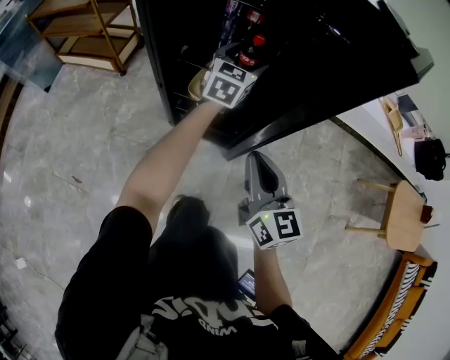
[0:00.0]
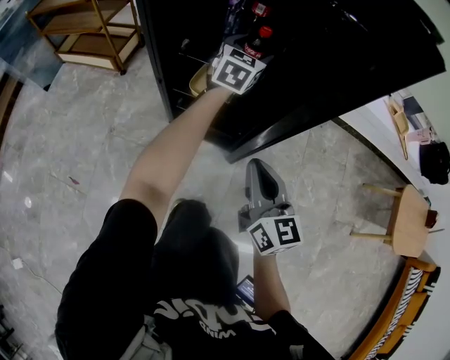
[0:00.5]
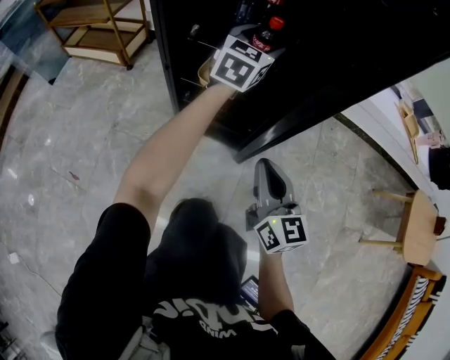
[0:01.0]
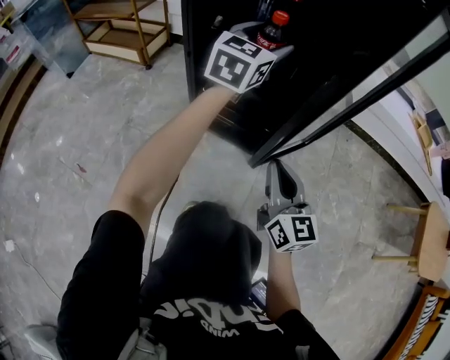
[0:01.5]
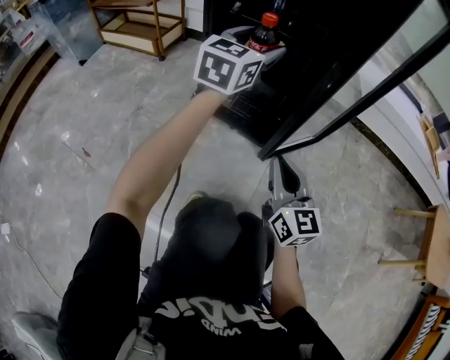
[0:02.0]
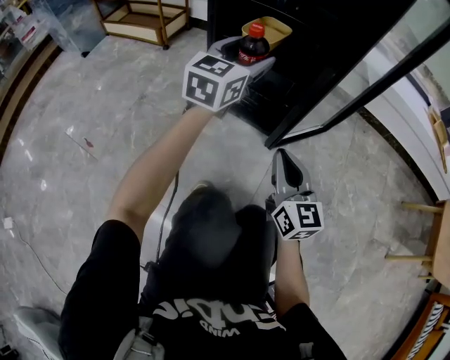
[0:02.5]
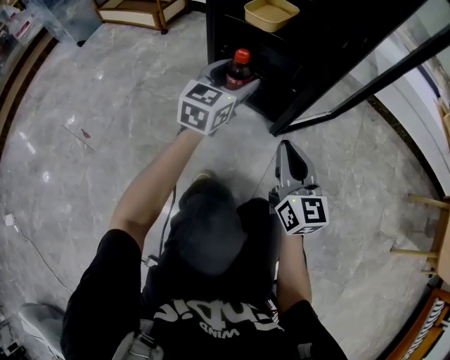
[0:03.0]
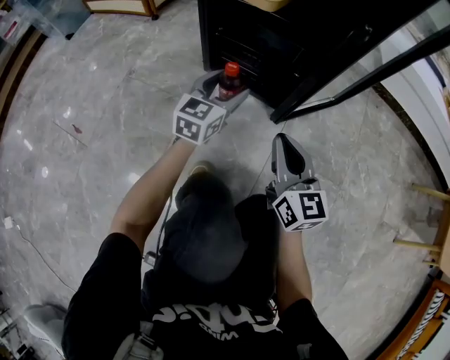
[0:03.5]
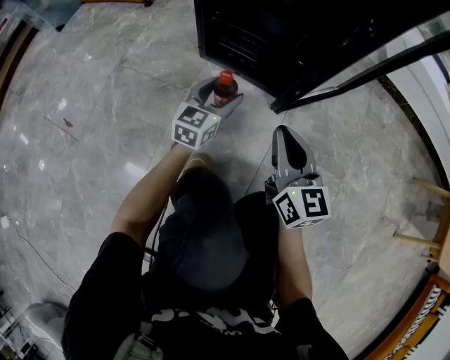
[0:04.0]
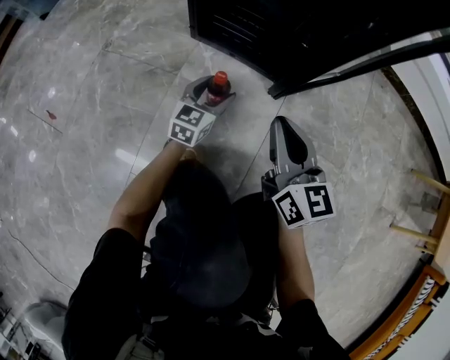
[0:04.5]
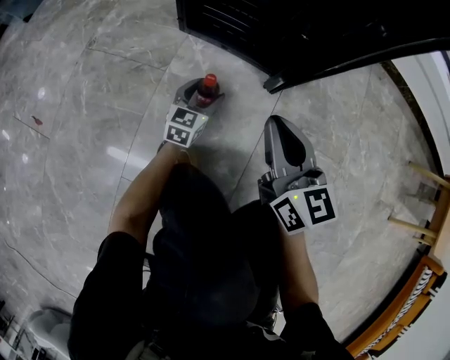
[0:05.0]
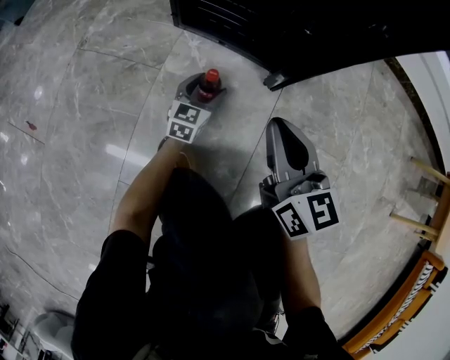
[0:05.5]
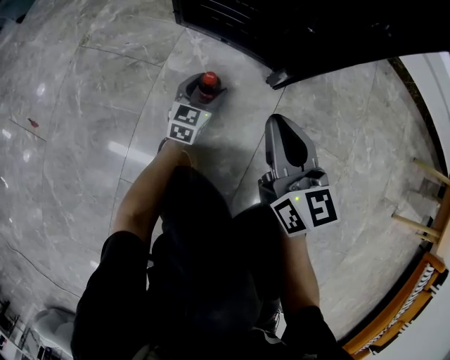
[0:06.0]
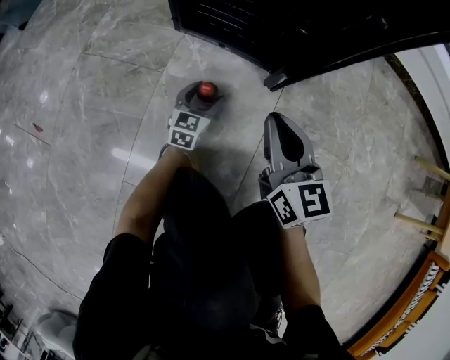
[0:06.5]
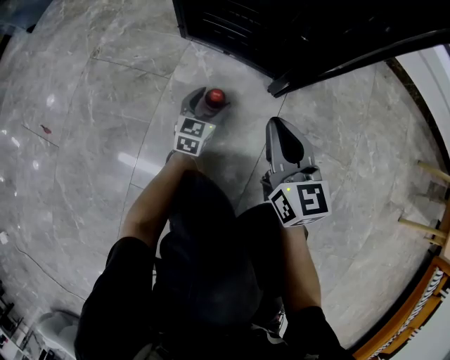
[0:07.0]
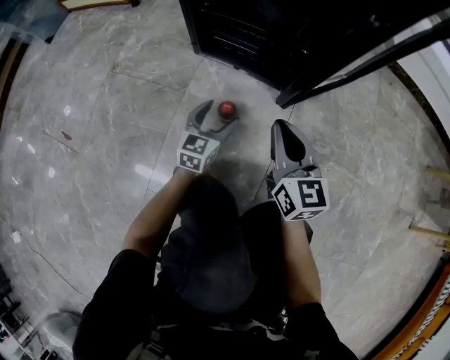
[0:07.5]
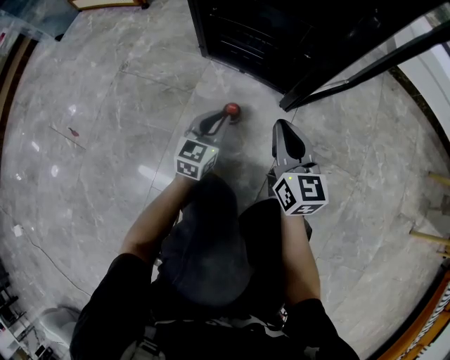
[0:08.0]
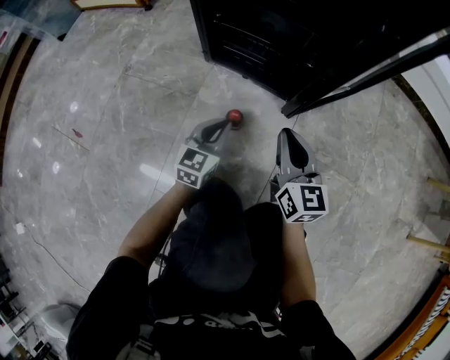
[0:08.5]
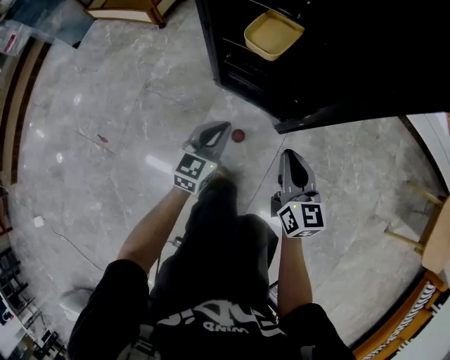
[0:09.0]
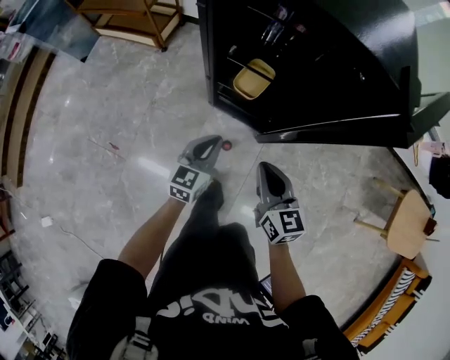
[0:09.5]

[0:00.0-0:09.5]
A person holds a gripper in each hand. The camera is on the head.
0:00.0 to 0:02.0: The right gripper goes roughly 25 cm downward and backward. The left gripper travels backward by about 20 cm.
0:02.0 to 0:04.0: The left gripper is displaced downward by some 40 cm. Meanwhile the right gripper is displaced downward by approximately 15 cm.
0:04.0 to 0:05.5: The left gripper shifts approximately 20 cm downward; the right gripper is displaced downward by roughly 5 cm.
0:05.5 to 0:07.5: The left gripper moves upward and backward, some 10 cm.
0:07.5 to 0:09.5: The two grippers go some 60 cm upward. The left gripper closes its fingers.

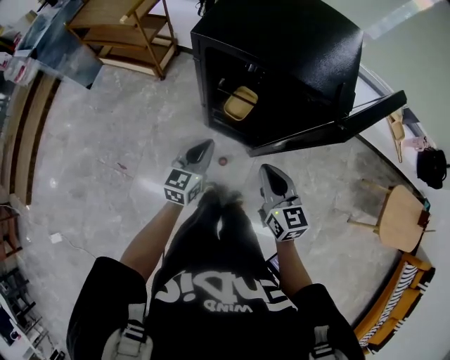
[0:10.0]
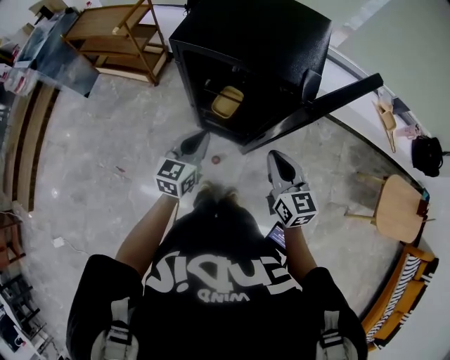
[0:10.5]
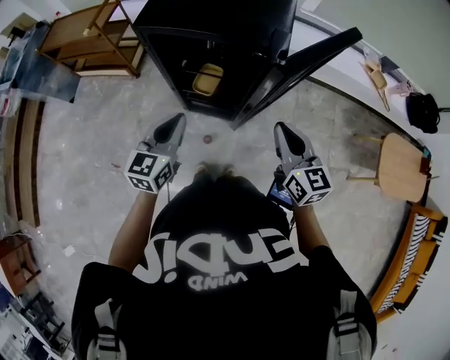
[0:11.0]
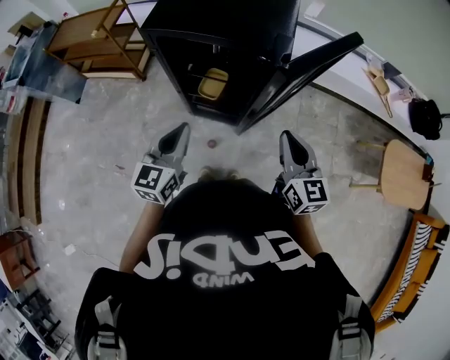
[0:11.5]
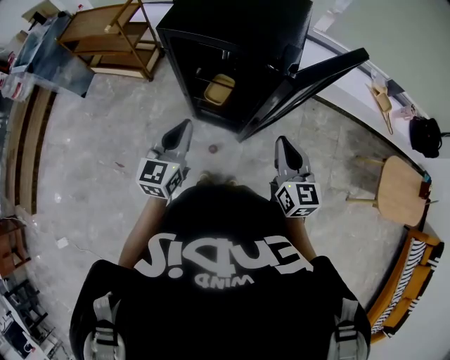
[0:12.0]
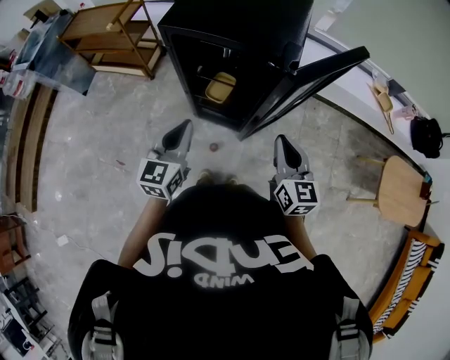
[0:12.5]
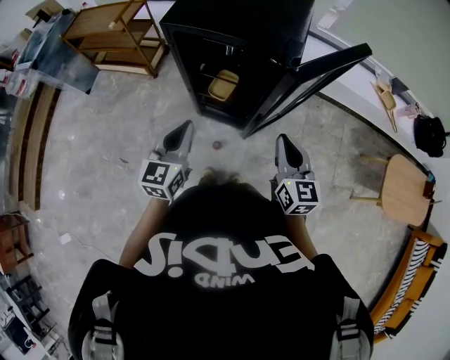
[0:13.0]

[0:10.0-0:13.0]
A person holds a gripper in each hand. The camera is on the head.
0:10.0 to 0:11.5: The left gripper shifts approximately 15 cm upward, backward and to the right; the right gripper shifts some 20 cm to the right and upward.
0:11.5 to 0:13.0: There are only small adjustments of the grippers.

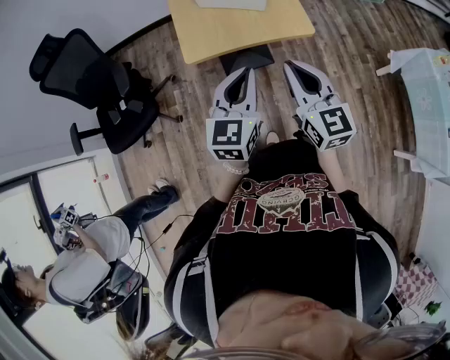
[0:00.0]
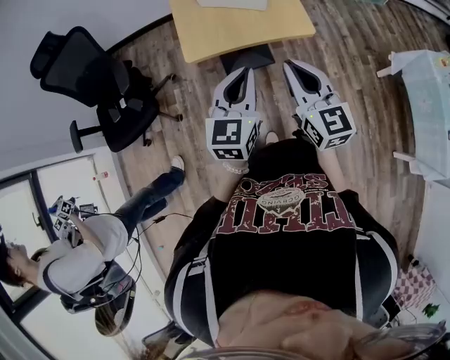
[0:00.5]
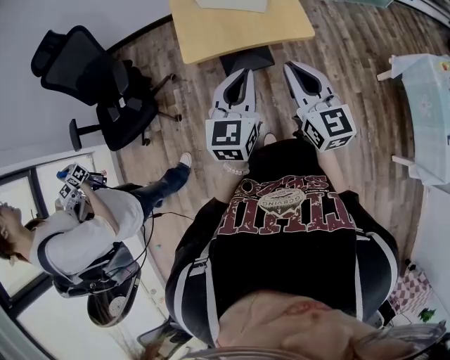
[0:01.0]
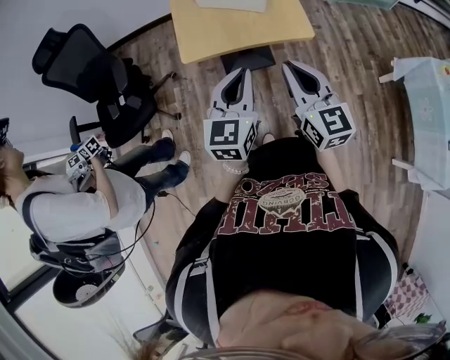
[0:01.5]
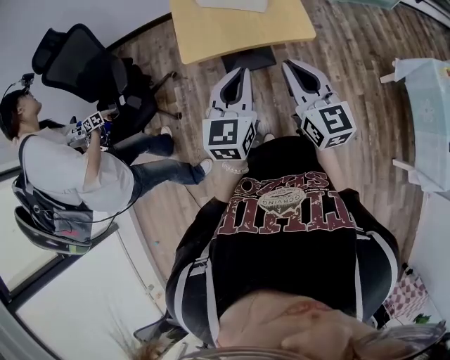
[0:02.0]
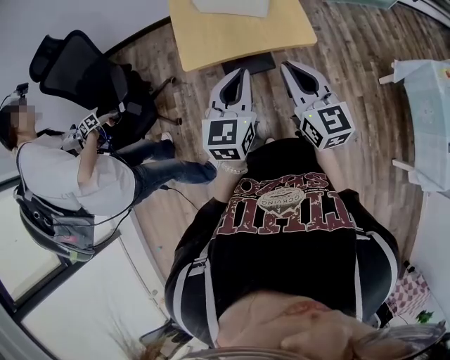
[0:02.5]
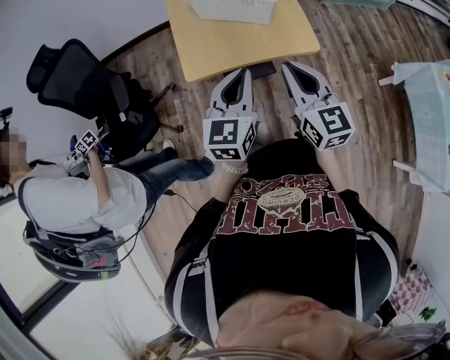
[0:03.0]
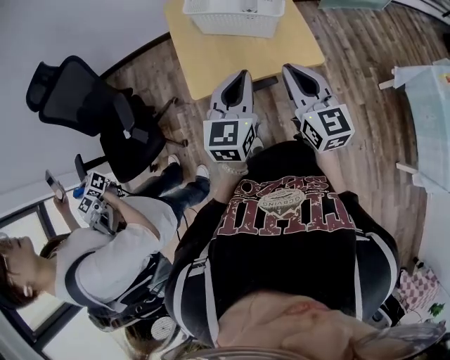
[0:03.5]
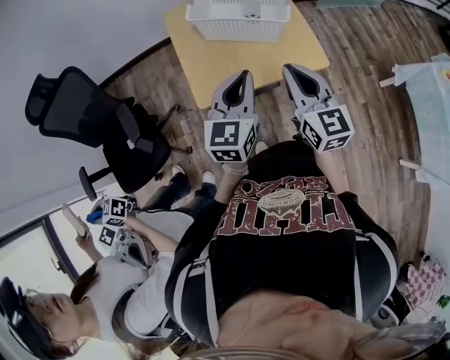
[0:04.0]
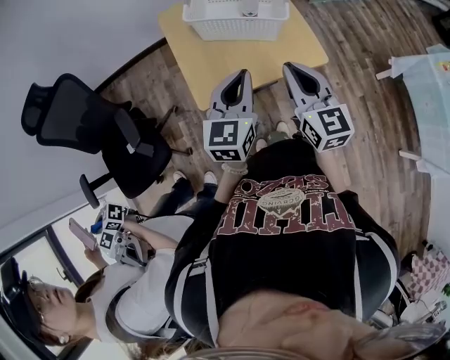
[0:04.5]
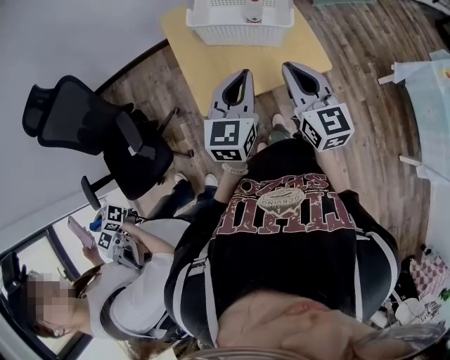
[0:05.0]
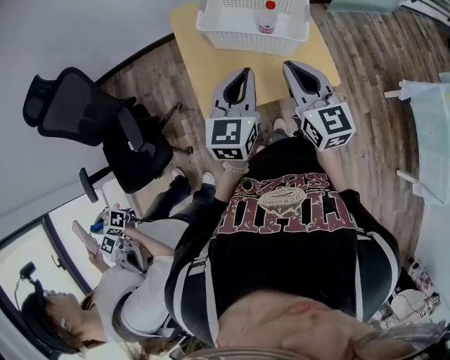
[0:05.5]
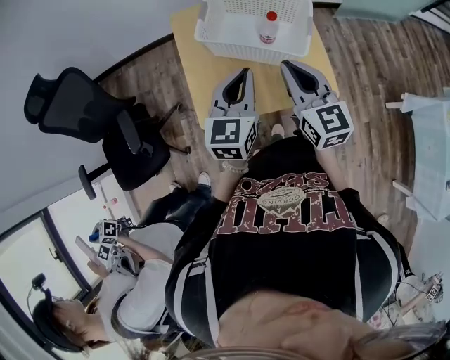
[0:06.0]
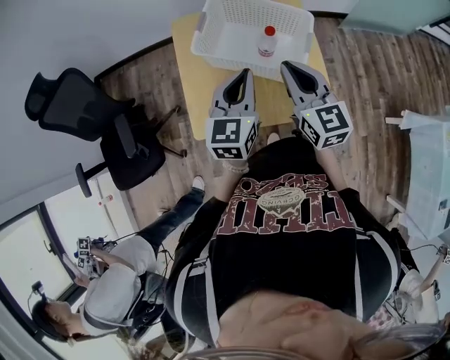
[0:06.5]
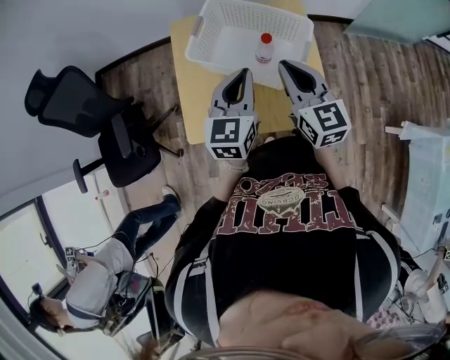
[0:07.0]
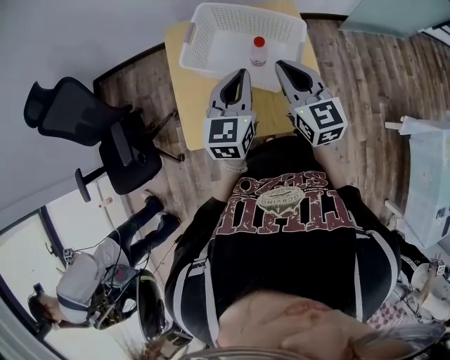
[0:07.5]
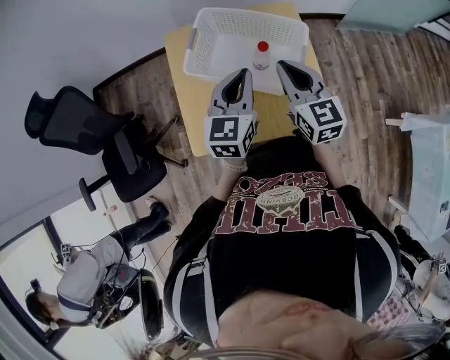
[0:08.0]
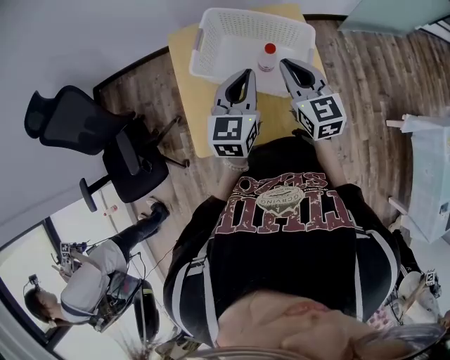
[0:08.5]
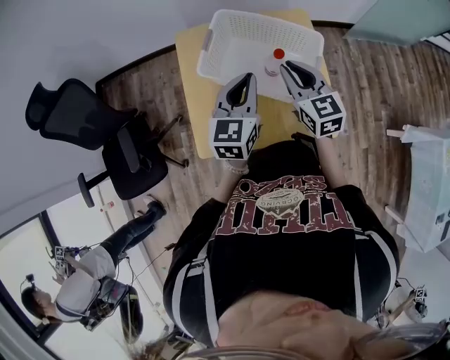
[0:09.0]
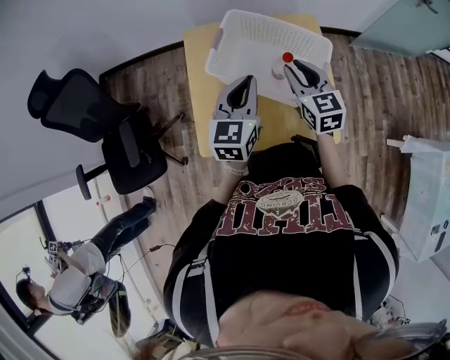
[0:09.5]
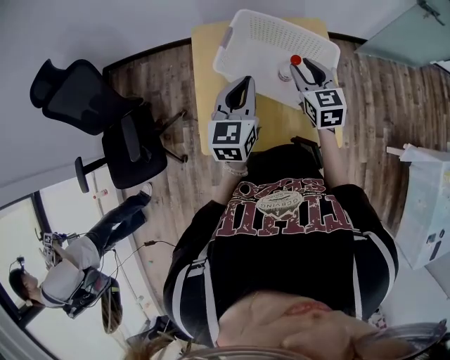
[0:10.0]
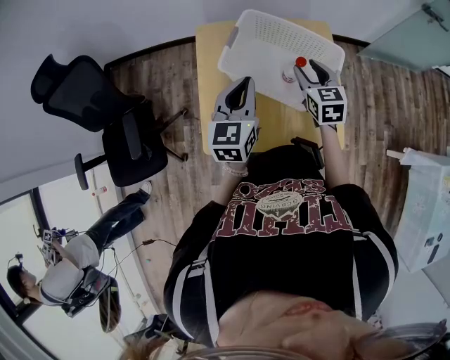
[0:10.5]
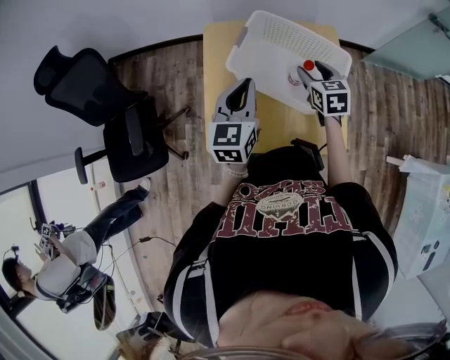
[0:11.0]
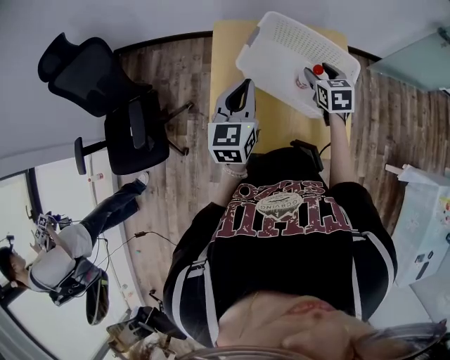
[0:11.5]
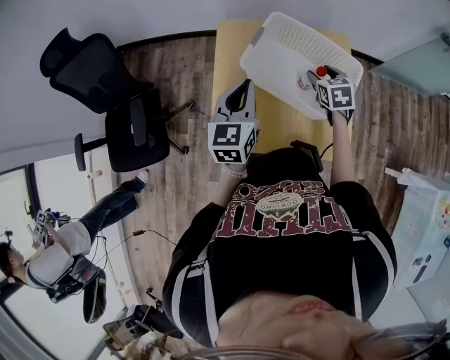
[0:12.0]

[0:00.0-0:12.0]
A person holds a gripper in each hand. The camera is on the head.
0:00.0 to 0:02.0: The grippers make only small movements.
0:02.0 to 0:04.0: Both grippers travel together forward and to the left, approximately 20 cm.
0:04.0 to 0:06.0: The two grippers go some 15 cm forward.
0:06.0 to 0:08.0: Both grippers travel together forward and to the right, approximately 15 cm.
0:08.0 to 0:10.0: The right gripper shifts approximately 10 cm forward and downward, and opens its fingers. Meanwhile the left gripper goes about 10 cm to the left.
0:10.0 to 0:12.0: The left gripper moves to the left, roughly 10 cm, while the right gripper travels downward by approximately 10 cm, turns by roughly 20 degrees, and opens.

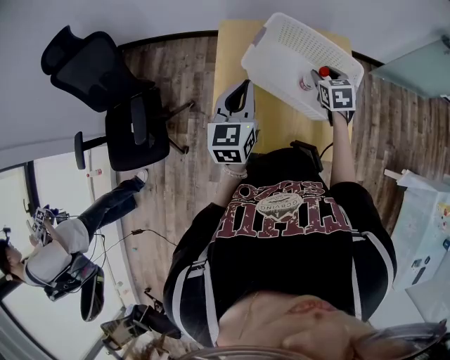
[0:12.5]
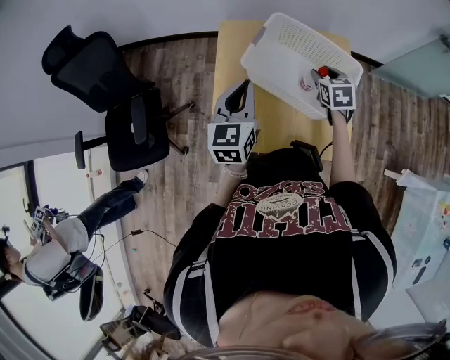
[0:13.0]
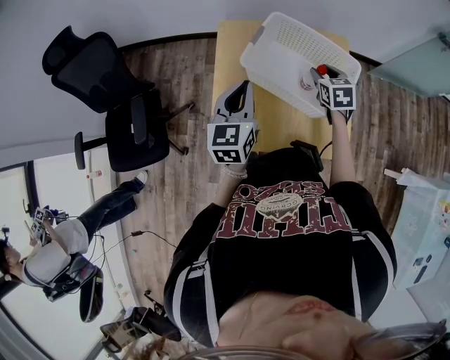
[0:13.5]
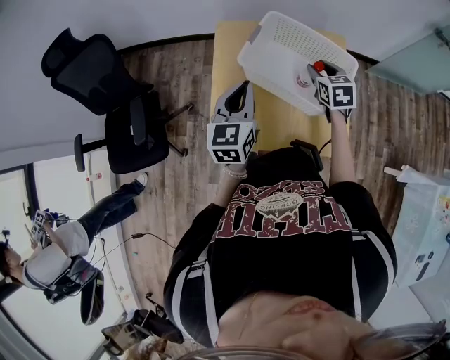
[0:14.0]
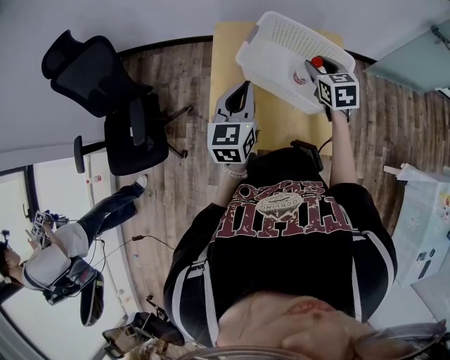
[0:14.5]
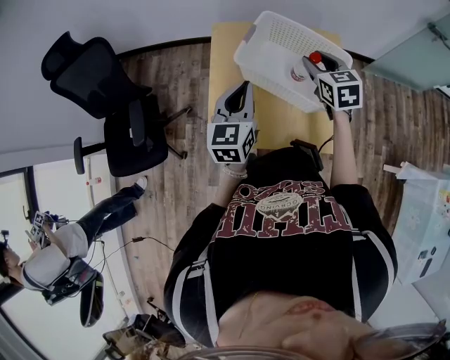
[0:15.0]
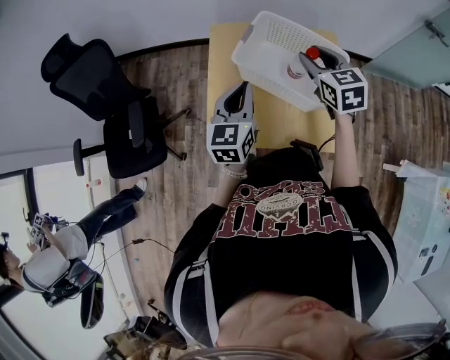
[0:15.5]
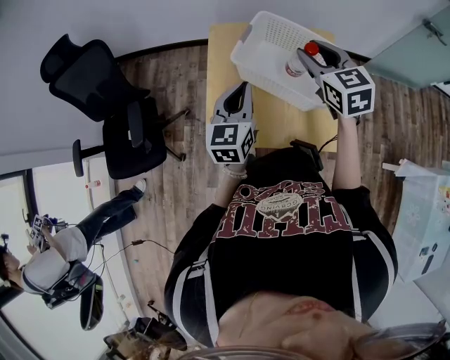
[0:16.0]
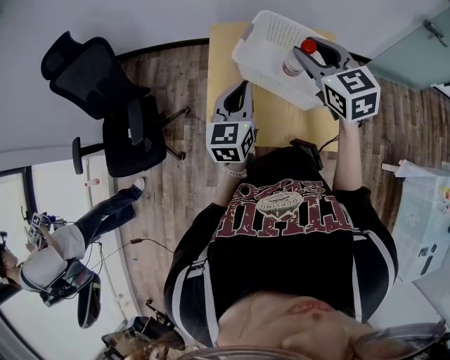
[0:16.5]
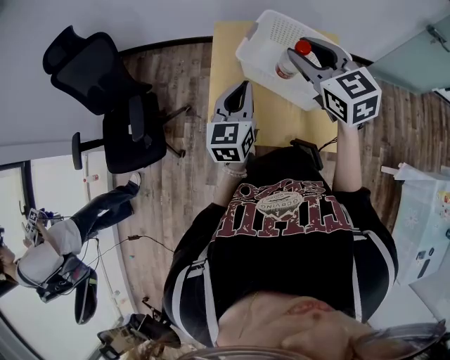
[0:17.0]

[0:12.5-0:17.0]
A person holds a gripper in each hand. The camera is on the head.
0:12.5 to 0:14.5: The right gripper shifts approximately 10 cm upward.
0:14.5 to 0:17.0: The right gripper moves upward and to the left, about 20 cm, and changes its angle by about 20 degrees.
